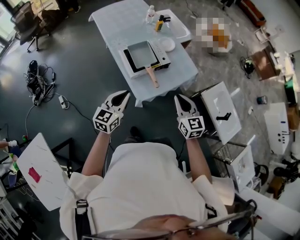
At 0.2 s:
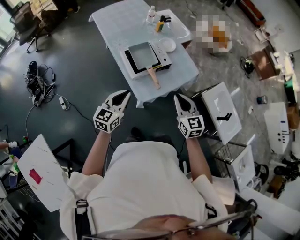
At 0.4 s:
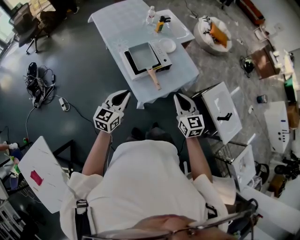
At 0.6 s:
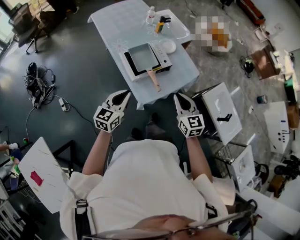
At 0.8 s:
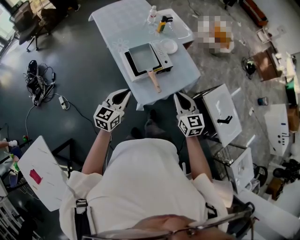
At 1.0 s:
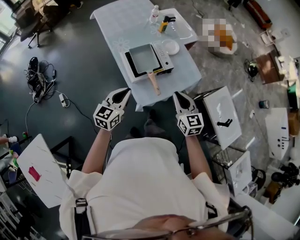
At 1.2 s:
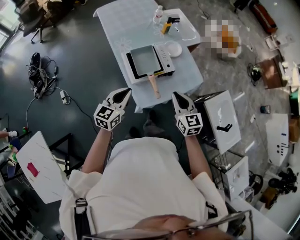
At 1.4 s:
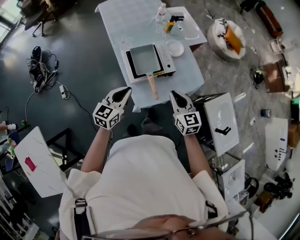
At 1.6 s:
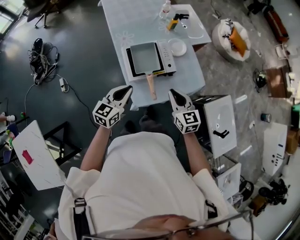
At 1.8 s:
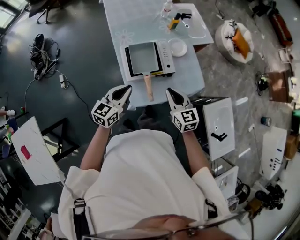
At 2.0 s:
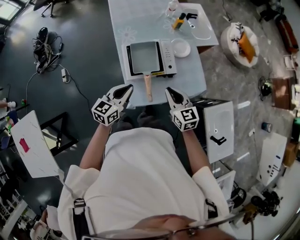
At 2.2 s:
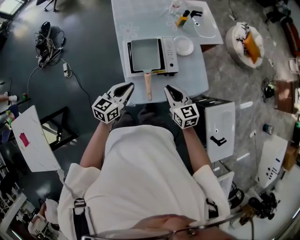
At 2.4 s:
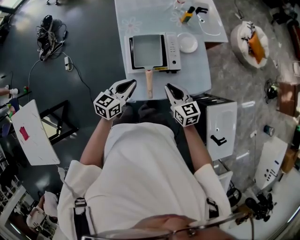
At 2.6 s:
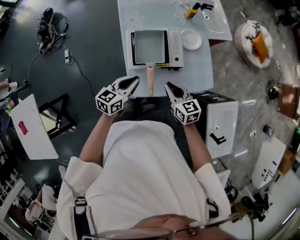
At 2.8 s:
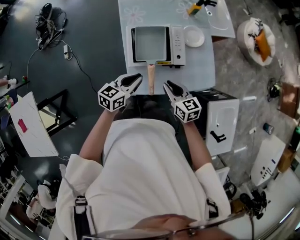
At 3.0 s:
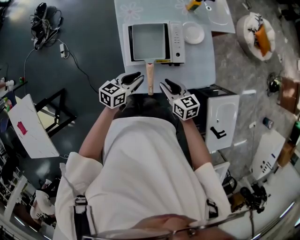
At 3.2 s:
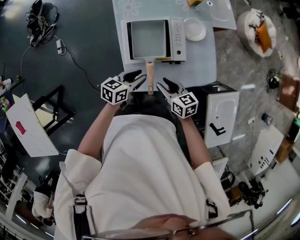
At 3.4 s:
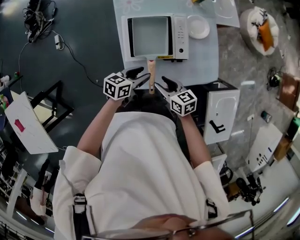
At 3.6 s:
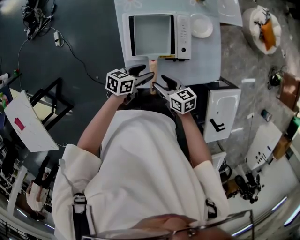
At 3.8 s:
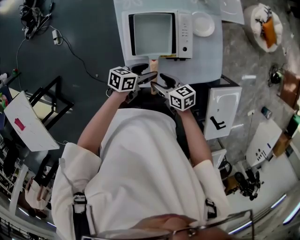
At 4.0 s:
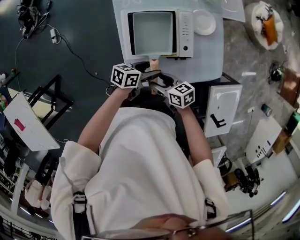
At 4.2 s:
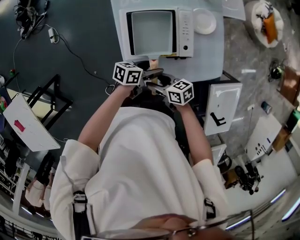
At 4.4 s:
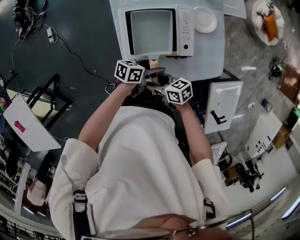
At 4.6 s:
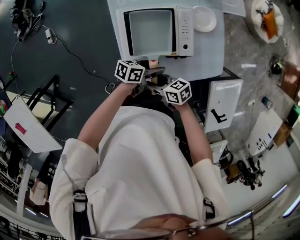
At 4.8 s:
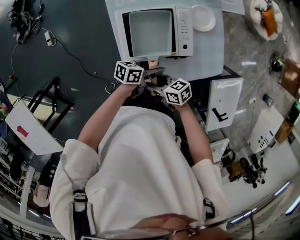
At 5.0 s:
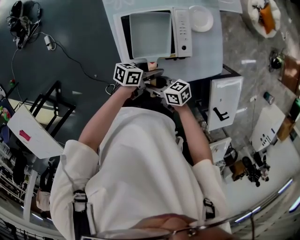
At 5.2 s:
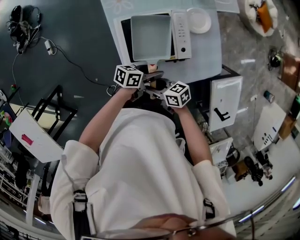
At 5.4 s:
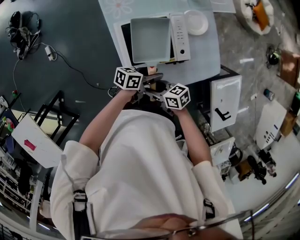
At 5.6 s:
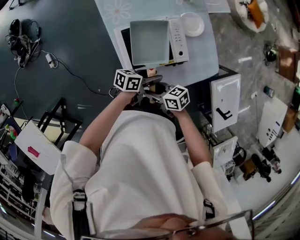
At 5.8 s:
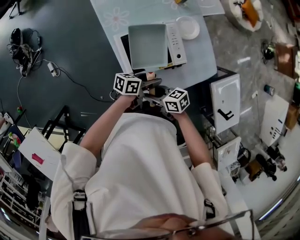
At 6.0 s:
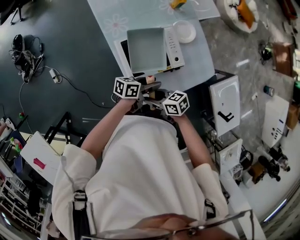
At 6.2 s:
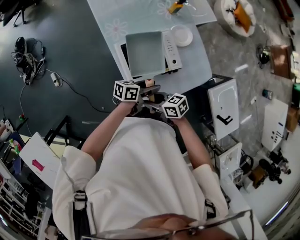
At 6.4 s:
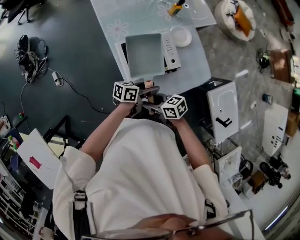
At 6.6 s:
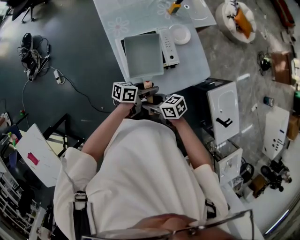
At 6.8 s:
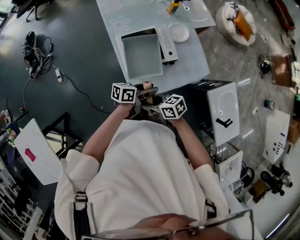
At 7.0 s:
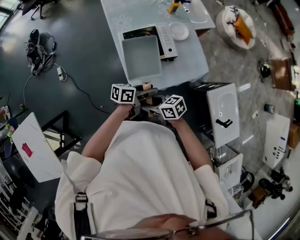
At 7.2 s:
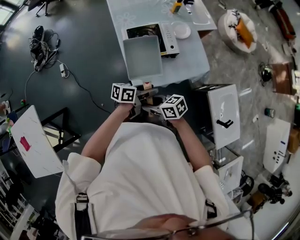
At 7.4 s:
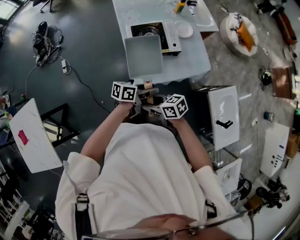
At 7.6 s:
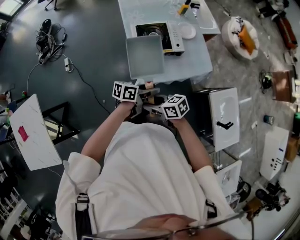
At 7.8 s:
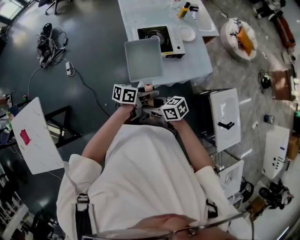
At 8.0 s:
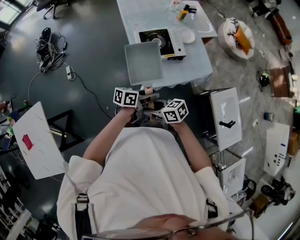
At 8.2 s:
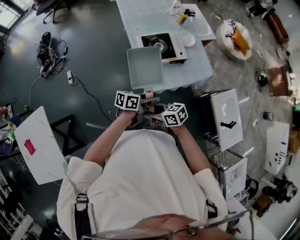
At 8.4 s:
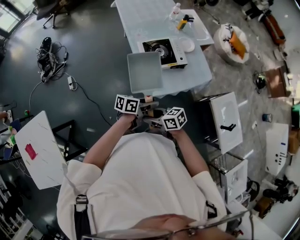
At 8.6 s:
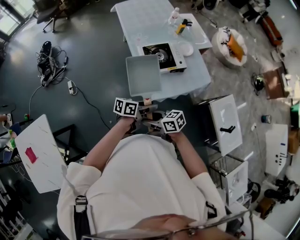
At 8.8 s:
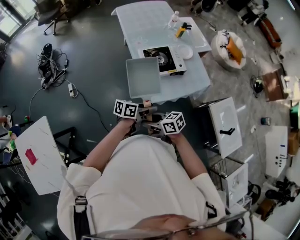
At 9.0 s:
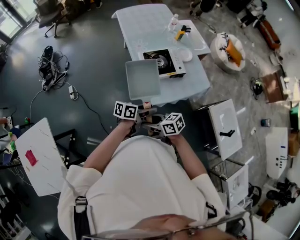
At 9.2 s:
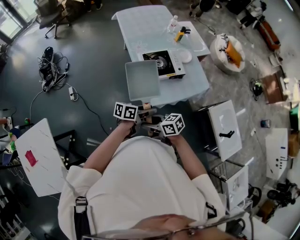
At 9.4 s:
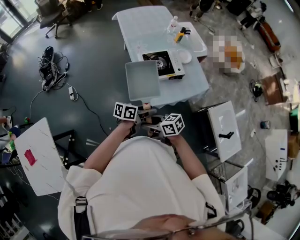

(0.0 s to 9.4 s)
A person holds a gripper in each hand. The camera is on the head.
0.0 s - 1.6 s: The grippers both shift forward by approximately 15 cm.
1.6 s - 3.2 s: The left gripper goes some 20 cm downward and to the right, changes its angle by about 30 degrees, and opens up. The right gripper travels downward by about 15 cm, swivels about 40 degrees, and opens.
3.2 s - 4.8 s: The right gripper changes place by some 10 cm, and rotates some 30 degrees. Meanwhile the left gripper goes some 10 cm downward, and turns by roughly 30 degrees.
4.8 s - 6.2 s: The two grippers go roughly 10 cm upward.
6.2 s - 7.8 s: The right gripper moves roughly 25 cm; the left gripper moves approximately 25 cm.
7.8 s - 9.4 s: The left gripper ends up roughly 10 cm from where it was. Meanwhile the right gripper shifts by approximately 10 cm.

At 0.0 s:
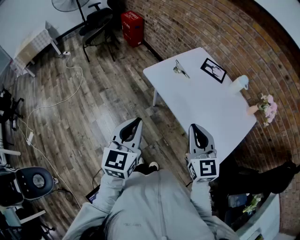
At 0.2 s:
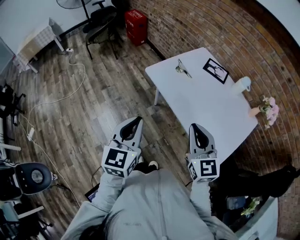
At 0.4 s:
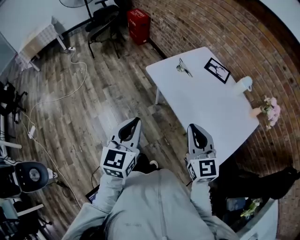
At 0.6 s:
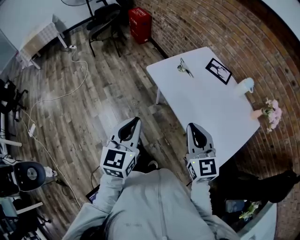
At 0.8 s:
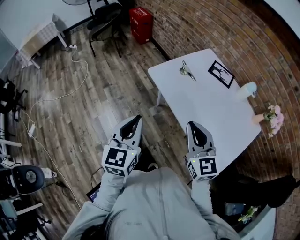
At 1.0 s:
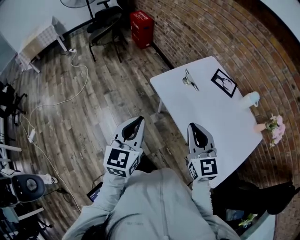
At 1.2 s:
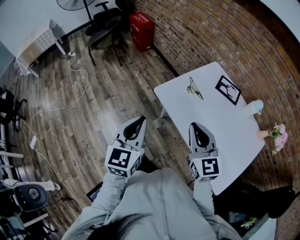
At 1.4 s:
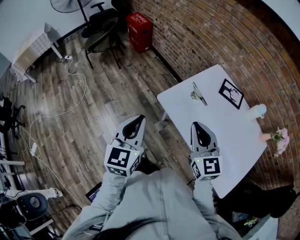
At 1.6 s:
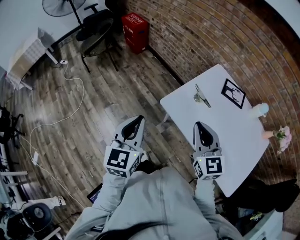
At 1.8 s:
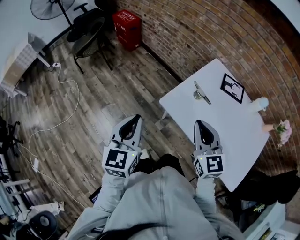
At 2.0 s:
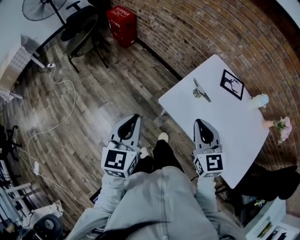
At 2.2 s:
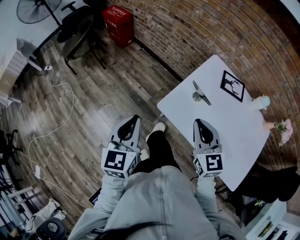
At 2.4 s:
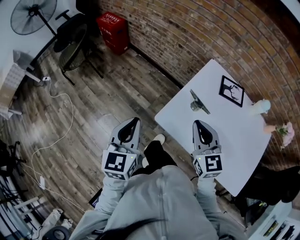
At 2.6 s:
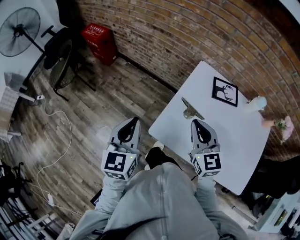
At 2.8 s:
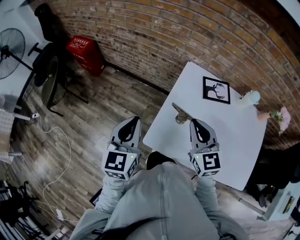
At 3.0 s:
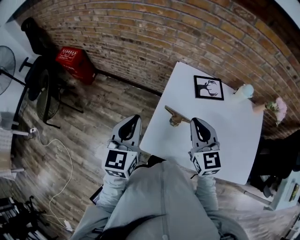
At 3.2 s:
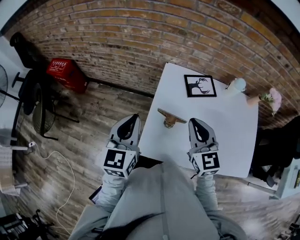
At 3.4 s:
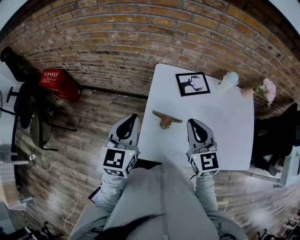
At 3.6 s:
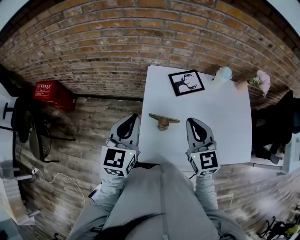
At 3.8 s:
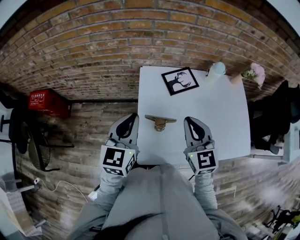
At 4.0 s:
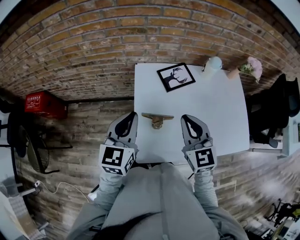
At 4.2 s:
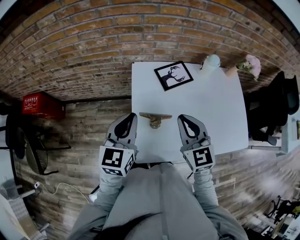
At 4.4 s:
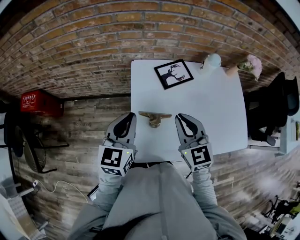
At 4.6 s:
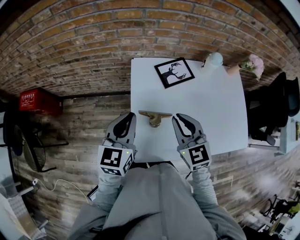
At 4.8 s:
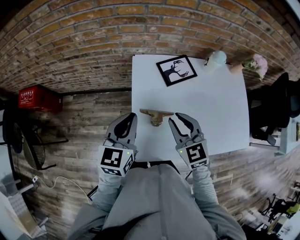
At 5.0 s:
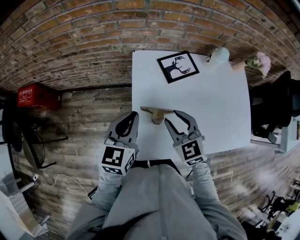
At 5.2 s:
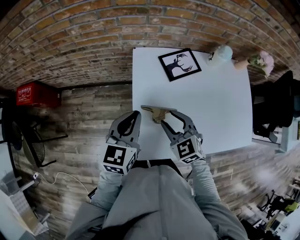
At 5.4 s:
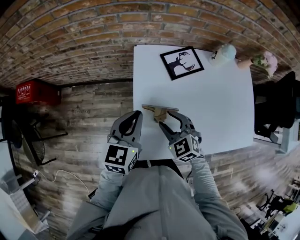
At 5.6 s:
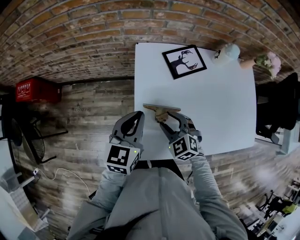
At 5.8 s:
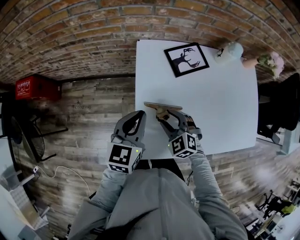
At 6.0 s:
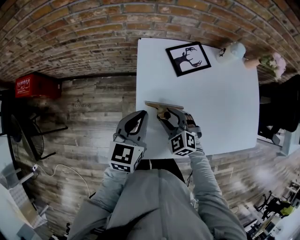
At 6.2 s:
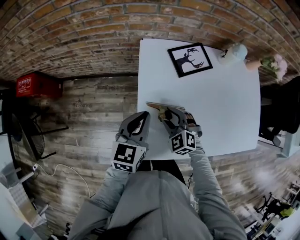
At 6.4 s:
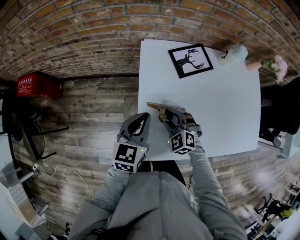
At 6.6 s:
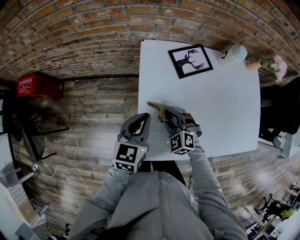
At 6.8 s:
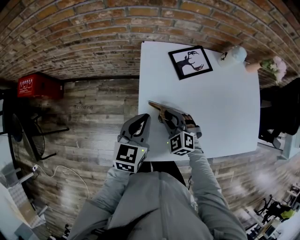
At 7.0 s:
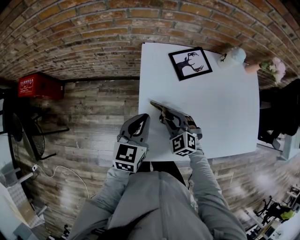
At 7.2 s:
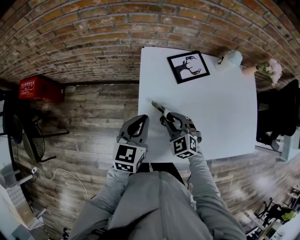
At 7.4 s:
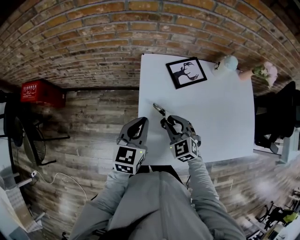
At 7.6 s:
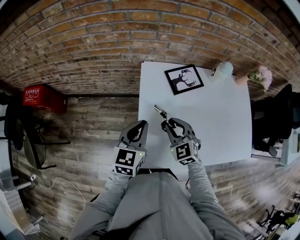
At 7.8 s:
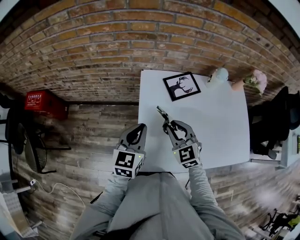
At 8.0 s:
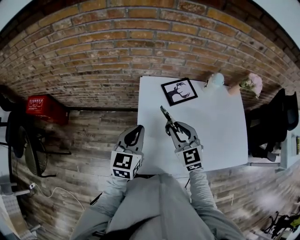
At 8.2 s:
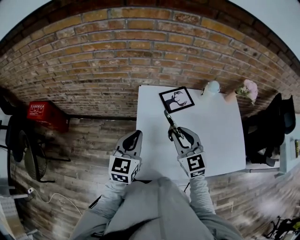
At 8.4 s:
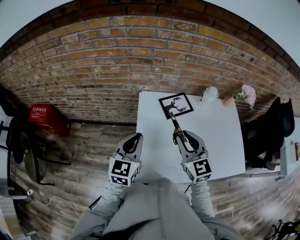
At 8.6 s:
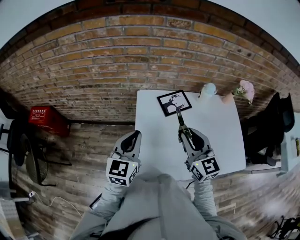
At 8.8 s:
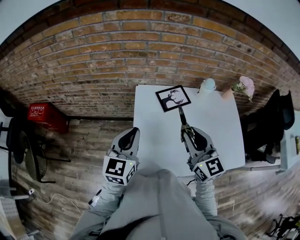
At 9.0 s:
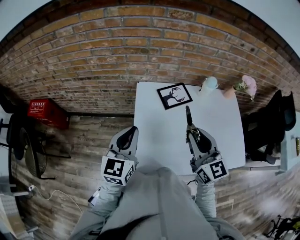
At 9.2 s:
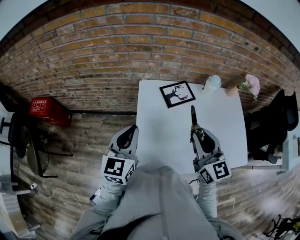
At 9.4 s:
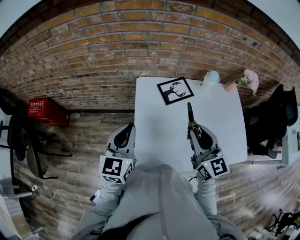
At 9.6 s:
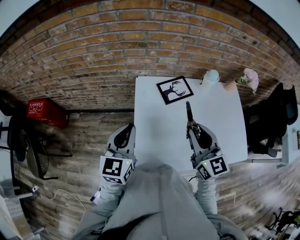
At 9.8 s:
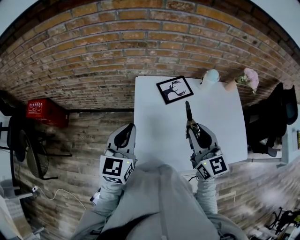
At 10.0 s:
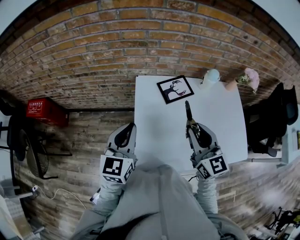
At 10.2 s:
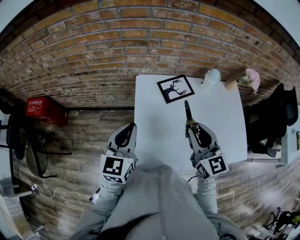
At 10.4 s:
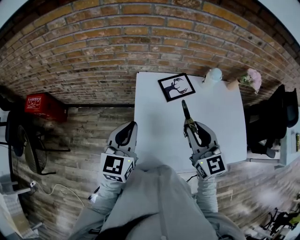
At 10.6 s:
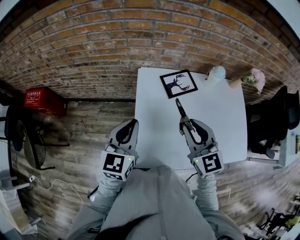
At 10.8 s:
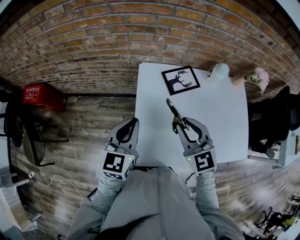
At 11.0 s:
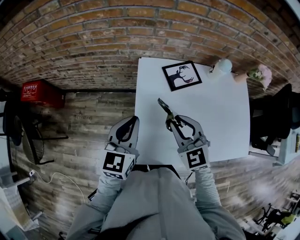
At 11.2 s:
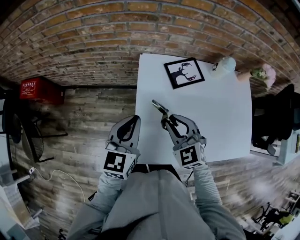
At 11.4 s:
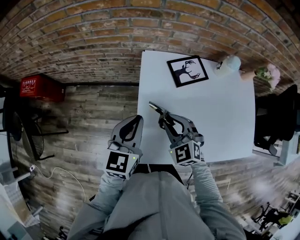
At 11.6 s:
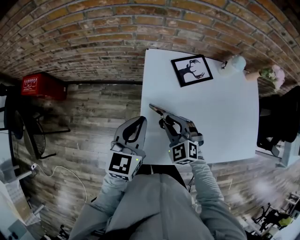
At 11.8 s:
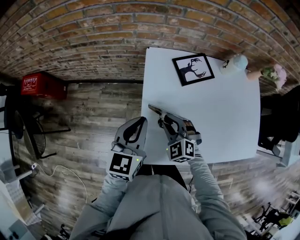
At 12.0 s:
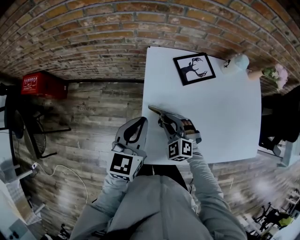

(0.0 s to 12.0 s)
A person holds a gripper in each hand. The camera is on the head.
0.0 s - 1.6 s: The grippers both shift forward and to the left by some 25 cm.
1.6 s - 3.0 s: The left gripper ends up roughly 30 cm from where it was, and rotates roughly 30 degrees, while the right gripper shifts by about 20 cm, and changes its angle by roughly 30 degrees.
3.0 s - 4.4 s: The left gripper travels forward and to the right by roughly 10 cm, and swivels roughly 30 degrees.
4.4 s - 6.0 s: The right gripper heads downward, covering roughly 20 cm, rotates roughly 40 degrees, and opens up, while the left gripper goes roughly 10 cm downward.
6.0 s - 7.6 s: The right gripper heads upward, covering about 10 cm, and closes its fingers.
7.6 s - 9.0 s: The right gripper shifts some 20 cm upward and to the right, and turns by some 40 degrees. The left gripper travels upward by roughly 10 cm.
9.0 s - 10.4 s: The grippers stay close to where they were, moving slightly.
10.4 s - 12.0 s: The right gripper travels downward and to the left by some 30 cm, and tilts its fingers some 30 degrees downward. The left gripper is displaced downward by some 10 cm.

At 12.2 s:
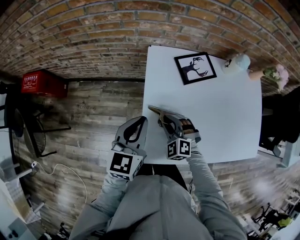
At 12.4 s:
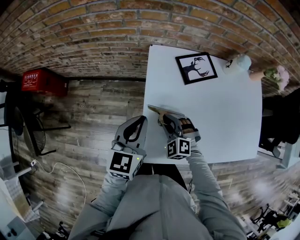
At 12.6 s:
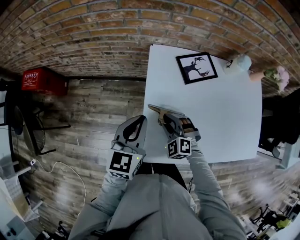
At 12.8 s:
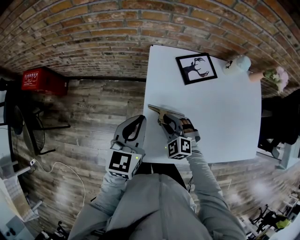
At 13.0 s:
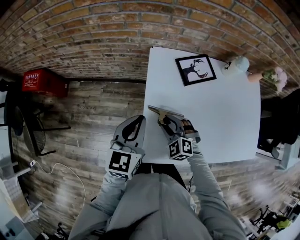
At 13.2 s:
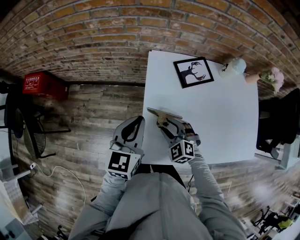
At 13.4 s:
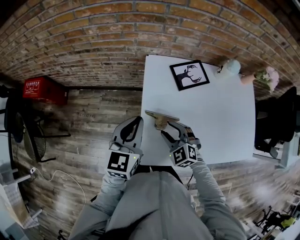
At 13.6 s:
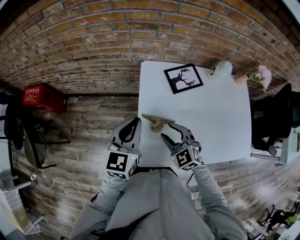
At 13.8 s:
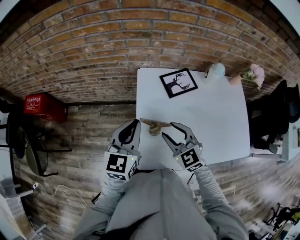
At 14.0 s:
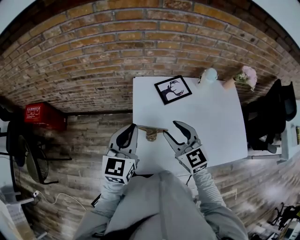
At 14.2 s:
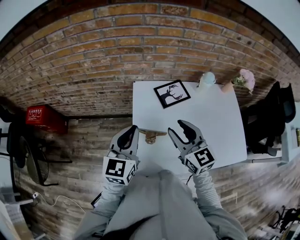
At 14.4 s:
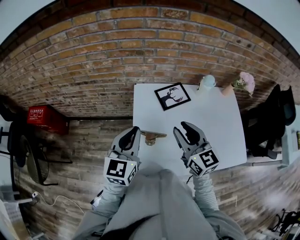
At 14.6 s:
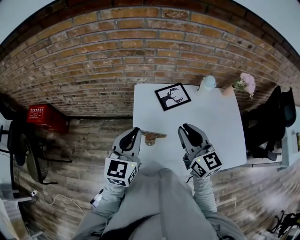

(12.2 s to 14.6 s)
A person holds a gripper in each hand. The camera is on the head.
12.2 s - 13.4 s: The right gripper shifts by roughly 5 cm, and opens up.
13.4 s - 14.6 s: The right gripper travels upward and to the right by some 25 cm, tips its fingers upward by some 40 degrees, and closes up; the left gripper moves upward, roughly 10 cm.
